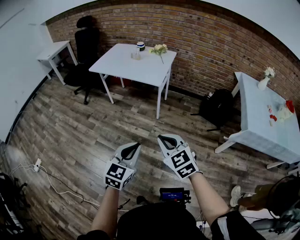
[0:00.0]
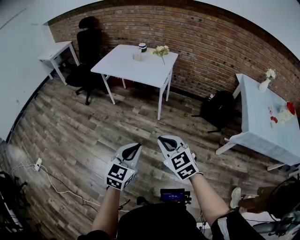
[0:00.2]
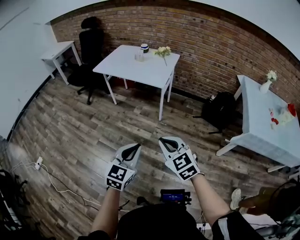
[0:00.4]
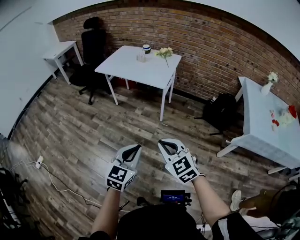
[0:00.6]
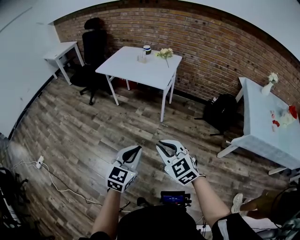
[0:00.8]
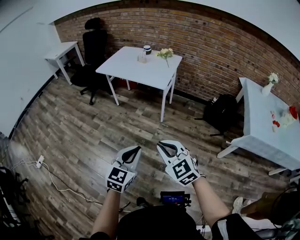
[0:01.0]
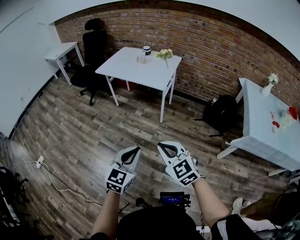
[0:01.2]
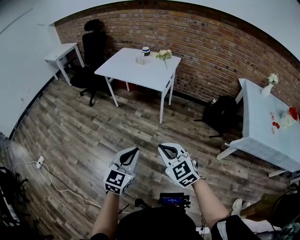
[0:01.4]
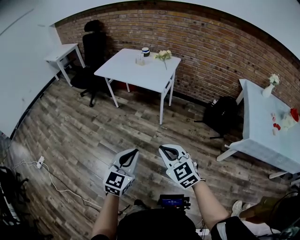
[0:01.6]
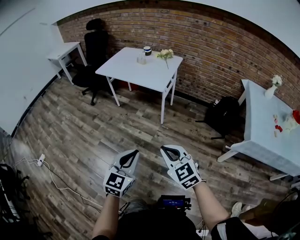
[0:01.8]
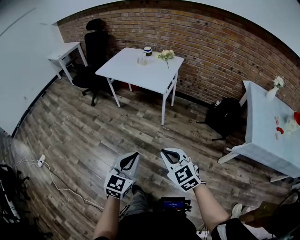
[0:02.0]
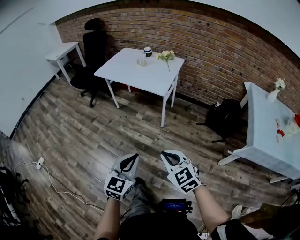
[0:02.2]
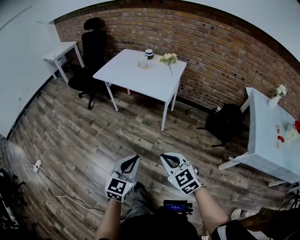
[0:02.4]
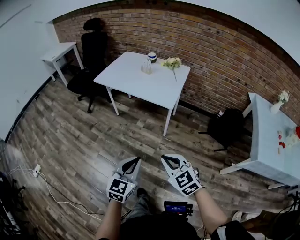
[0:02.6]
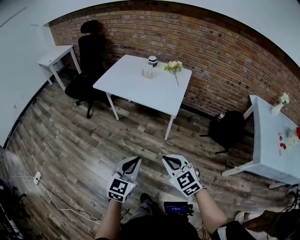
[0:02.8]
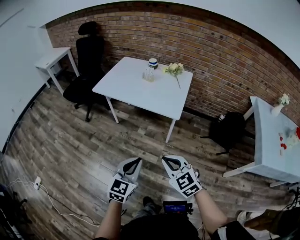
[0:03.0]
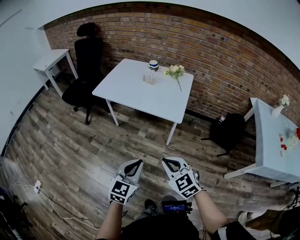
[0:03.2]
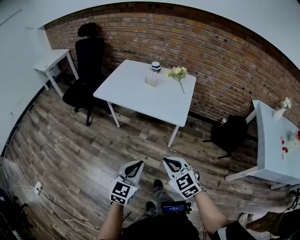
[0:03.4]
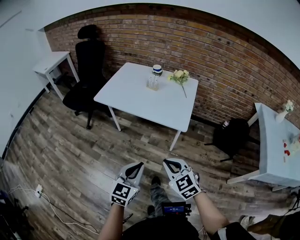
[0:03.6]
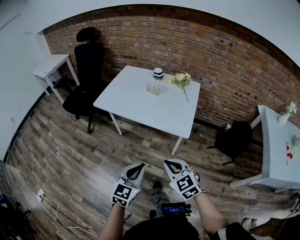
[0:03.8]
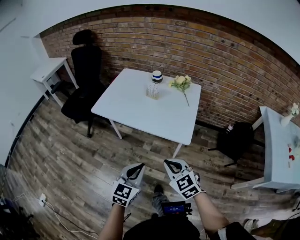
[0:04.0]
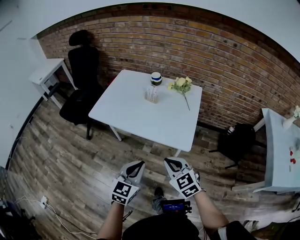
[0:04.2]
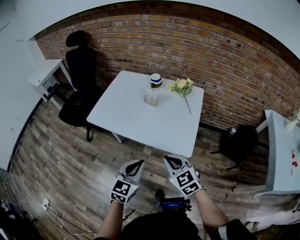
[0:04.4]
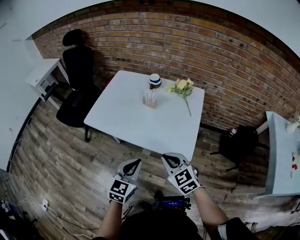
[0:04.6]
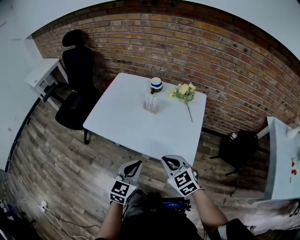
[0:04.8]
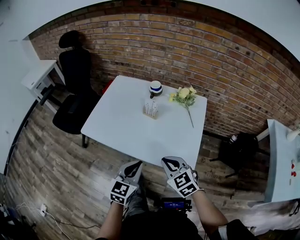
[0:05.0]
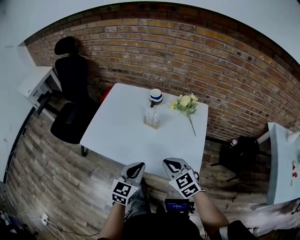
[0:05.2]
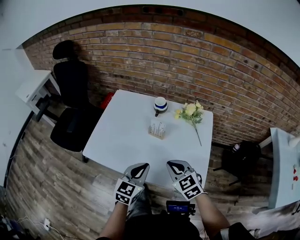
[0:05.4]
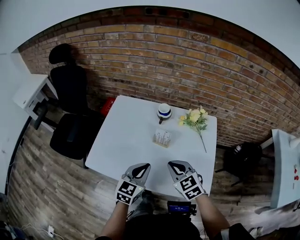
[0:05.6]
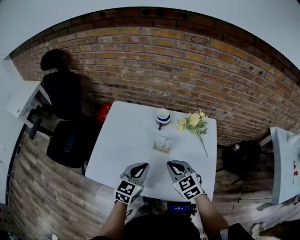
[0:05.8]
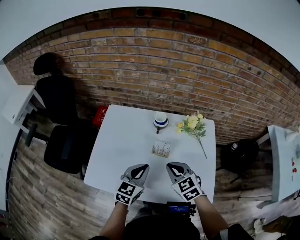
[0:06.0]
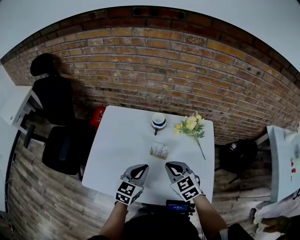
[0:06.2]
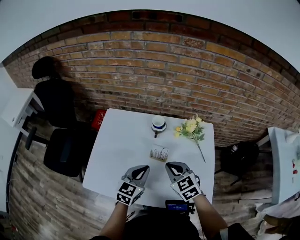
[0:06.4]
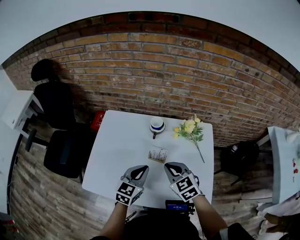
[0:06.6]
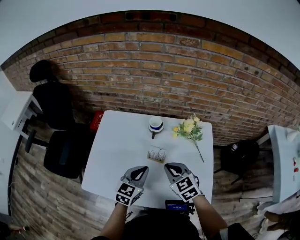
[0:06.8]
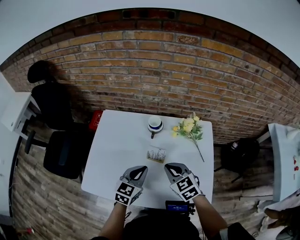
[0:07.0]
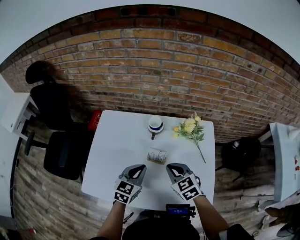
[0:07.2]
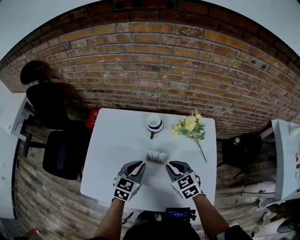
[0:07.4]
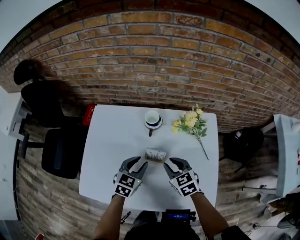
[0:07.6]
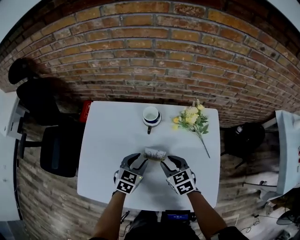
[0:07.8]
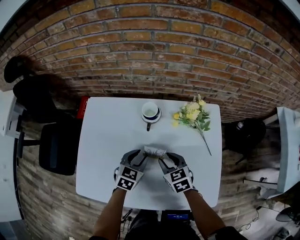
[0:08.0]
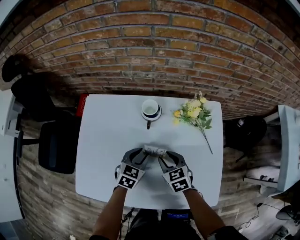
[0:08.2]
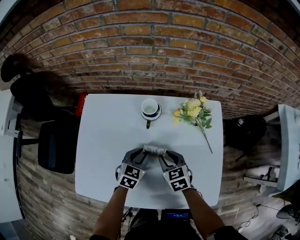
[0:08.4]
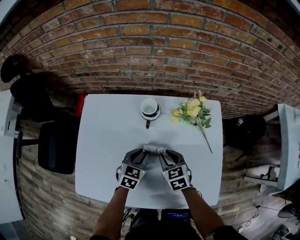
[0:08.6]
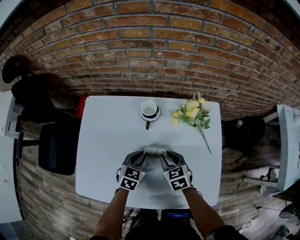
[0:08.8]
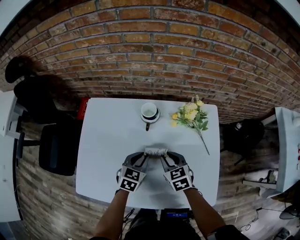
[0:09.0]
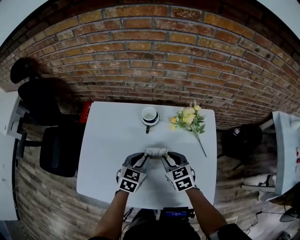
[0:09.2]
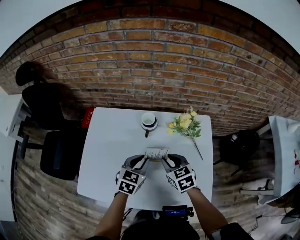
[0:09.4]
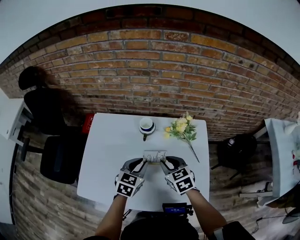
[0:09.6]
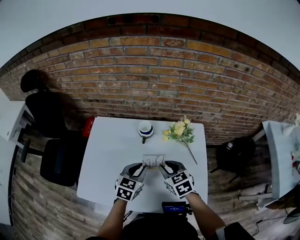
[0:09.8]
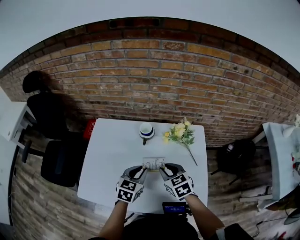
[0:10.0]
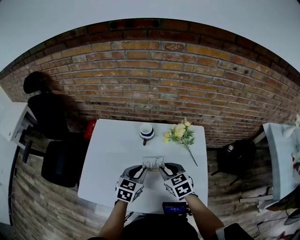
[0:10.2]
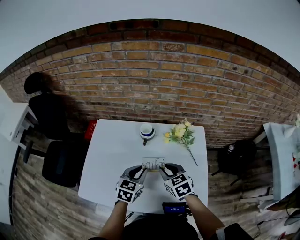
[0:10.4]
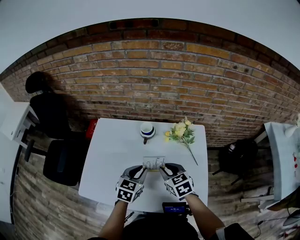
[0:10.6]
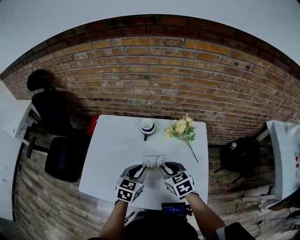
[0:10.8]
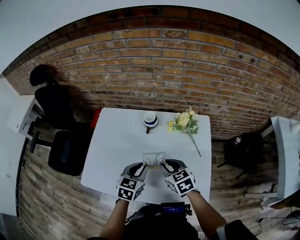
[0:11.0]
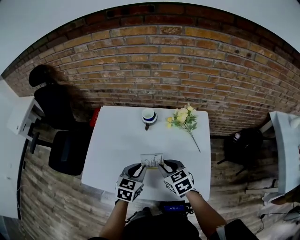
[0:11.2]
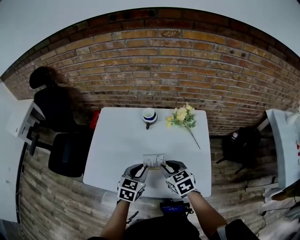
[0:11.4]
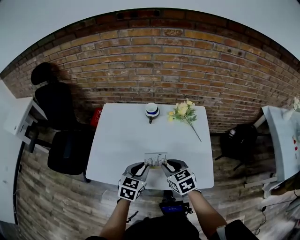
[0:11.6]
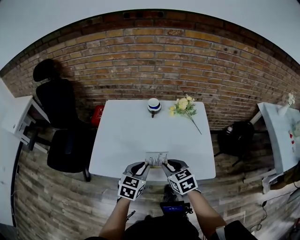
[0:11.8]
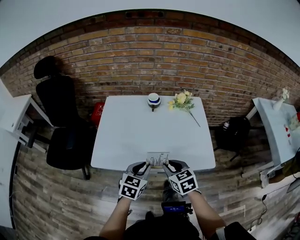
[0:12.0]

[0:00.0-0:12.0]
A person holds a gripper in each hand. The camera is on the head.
0:00.0 to 0:01.6: The grippers stay close to where they were, moving slightly.
0:01.6 to 0:03.0: The two grippers go roughly 30 cm forward and to the left.
0:03.0 to 0:04.4: The two grippers go some 30 cm forward.
0:04.4 to 0:06.0: The two grippers go approximately 35 cm forward.
0:06.0 to 0:07.6: The right gripper moves downward and forward, some 10 cm, and opens; the left gripper moves forward and downward, about 15 cm, and opens up.
0:09.0 to 0:10.4: The right gripper shifts roughly 10 cm upward. Meanwhile the left gripper shifts roughly 10 cm upward and backward.
0:10.4 to 0:12.0: Both grippers travel together backward, some 25 cm.

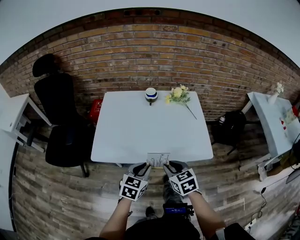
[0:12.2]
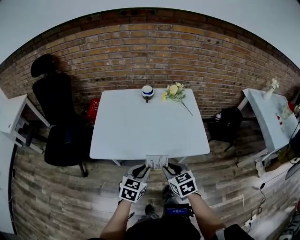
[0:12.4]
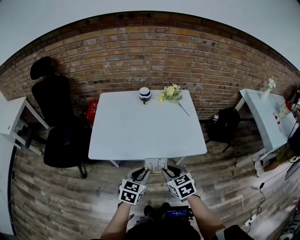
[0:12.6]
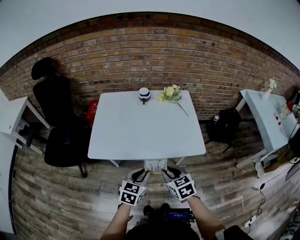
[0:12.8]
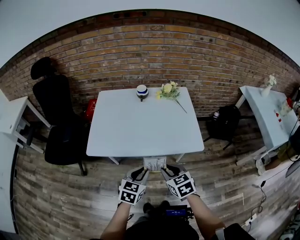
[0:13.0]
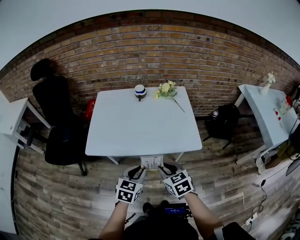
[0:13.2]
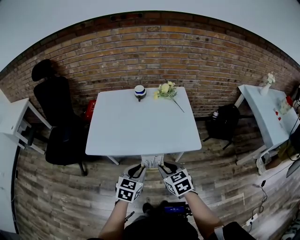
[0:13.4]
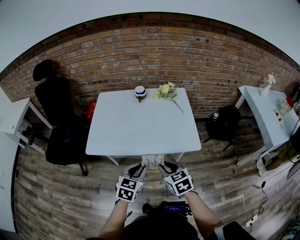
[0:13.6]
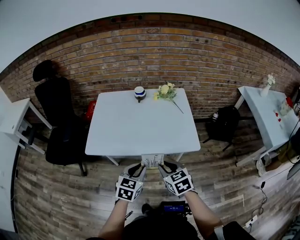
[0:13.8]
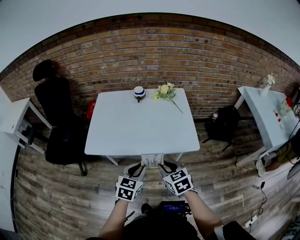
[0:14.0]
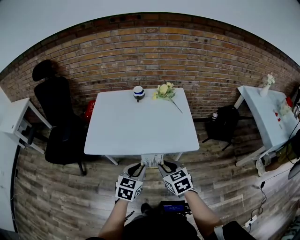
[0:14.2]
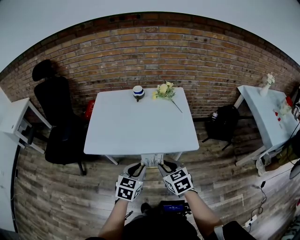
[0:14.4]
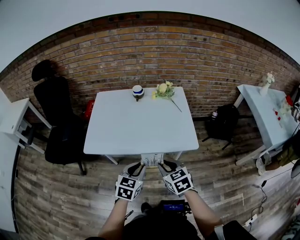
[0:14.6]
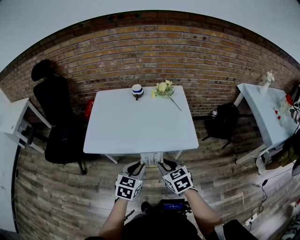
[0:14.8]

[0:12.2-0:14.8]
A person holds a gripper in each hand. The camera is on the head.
0:12.2 to 0:13.4: Both grippers travel together backward and to the right, some 10 cm.
0:13.4 to 0:14.8: The grippers move only a little.

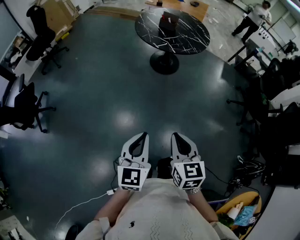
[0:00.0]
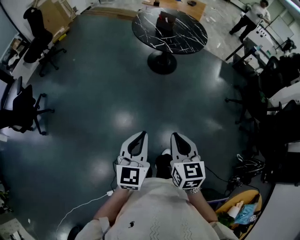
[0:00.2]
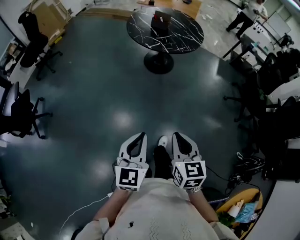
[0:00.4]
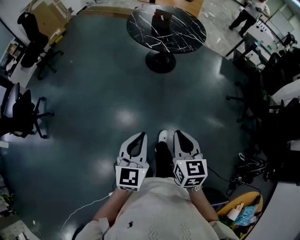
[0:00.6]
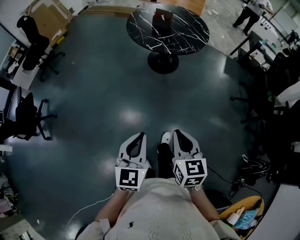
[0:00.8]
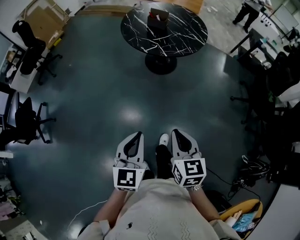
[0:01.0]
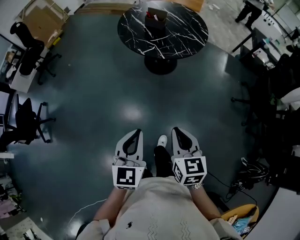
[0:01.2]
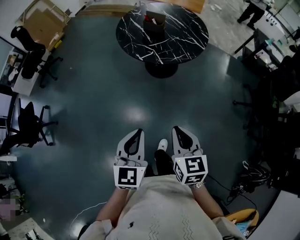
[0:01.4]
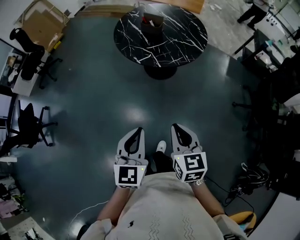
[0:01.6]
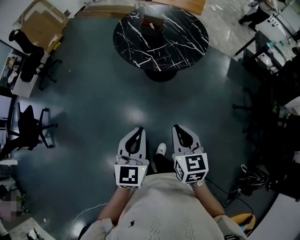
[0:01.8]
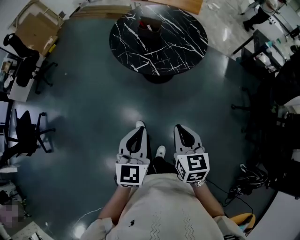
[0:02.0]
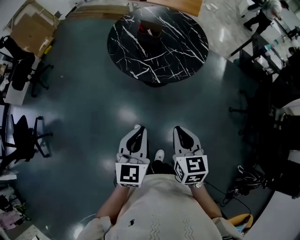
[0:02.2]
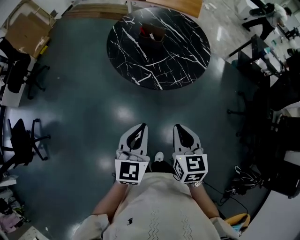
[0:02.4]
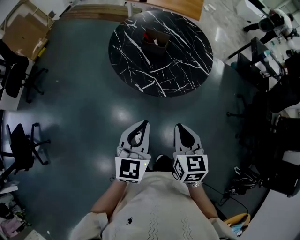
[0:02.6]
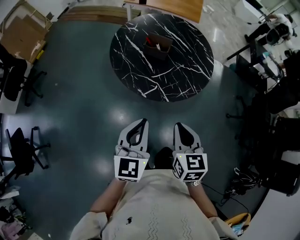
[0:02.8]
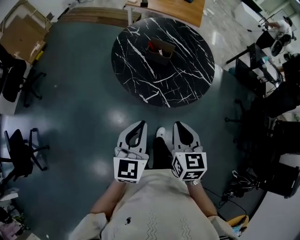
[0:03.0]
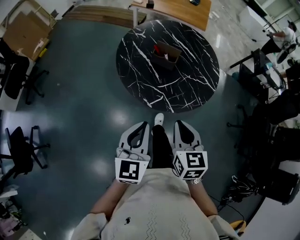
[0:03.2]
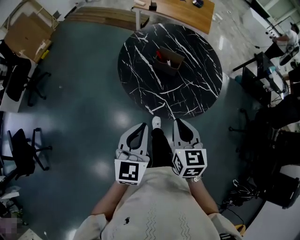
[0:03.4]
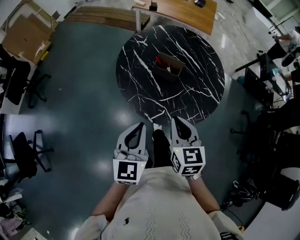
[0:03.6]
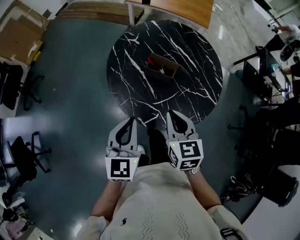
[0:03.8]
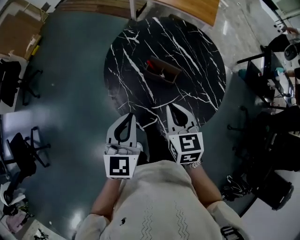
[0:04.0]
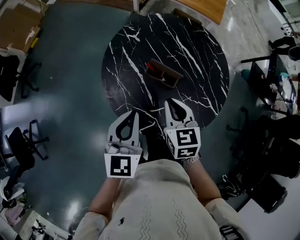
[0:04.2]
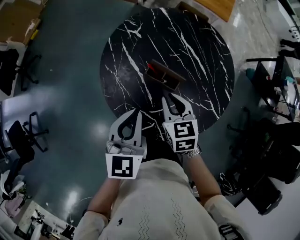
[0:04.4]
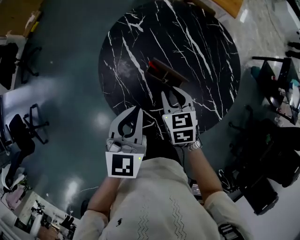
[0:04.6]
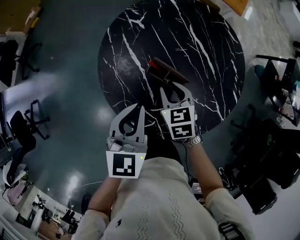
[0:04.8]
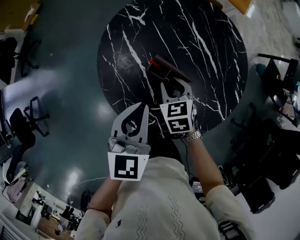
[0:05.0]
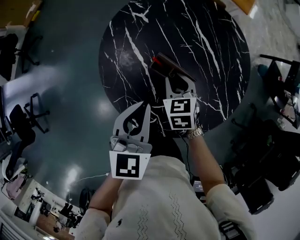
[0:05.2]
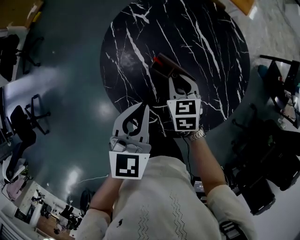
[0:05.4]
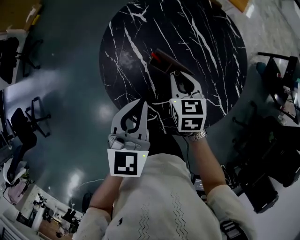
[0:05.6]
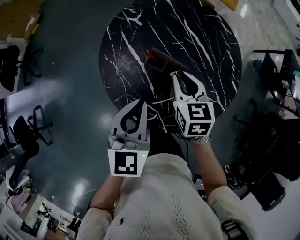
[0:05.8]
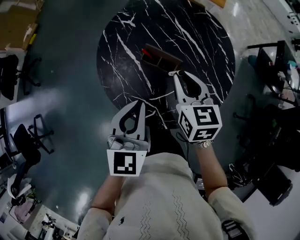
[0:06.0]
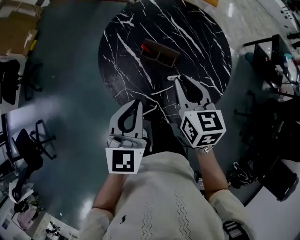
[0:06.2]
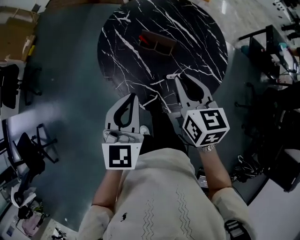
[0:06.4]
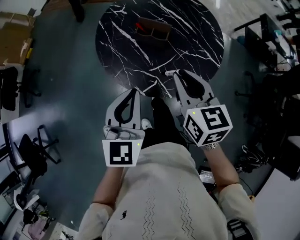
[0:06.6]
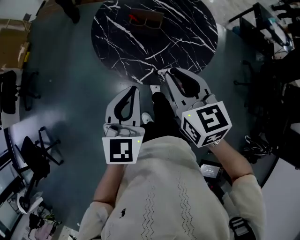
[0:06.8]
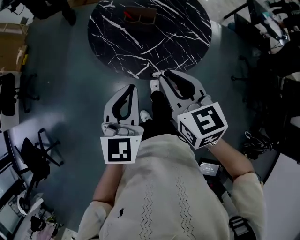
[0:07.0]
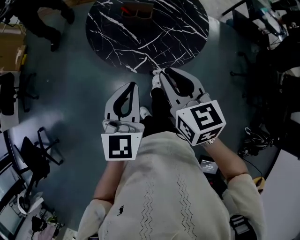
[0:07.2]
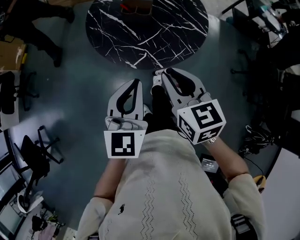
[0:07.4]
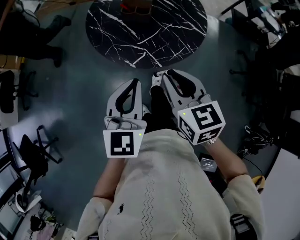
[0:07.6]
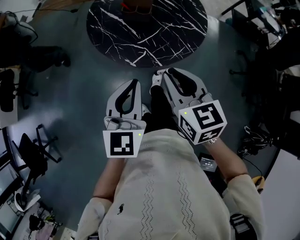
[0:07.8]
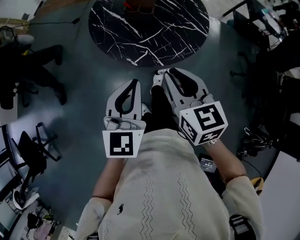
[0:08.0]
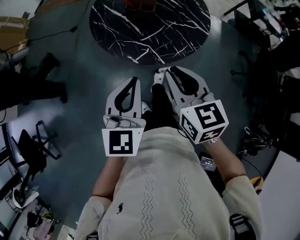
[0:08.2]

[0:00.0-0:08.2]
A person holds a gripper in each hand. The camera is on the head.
0:00.0 to 0:01.6: Both grippers move forward and to the right, some 35 cm.
0:01.6 to 0:03.2: The grippers both shift forward and to the left by roughly 35 cm.
0:03.2 to 0:05.0: The left gripper goes some 35 cm forward, while the right gripper is displaced forward and downward by approximately 50 cm, swivels about 30 degrees, and opens.
0:05.0 to 0:06.6: Both grippers move backward and upward, some 30 cm. The right gripper swivels some 30 degrees.
0:06.6 to 0:08.2: Both grippers move backward, about 15 cm.

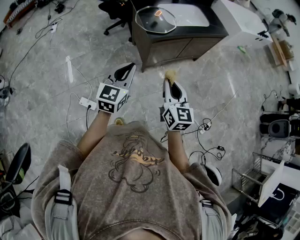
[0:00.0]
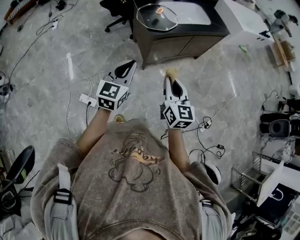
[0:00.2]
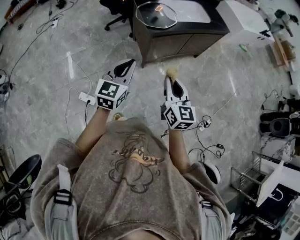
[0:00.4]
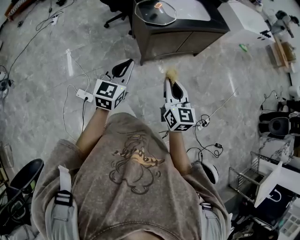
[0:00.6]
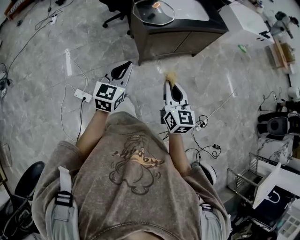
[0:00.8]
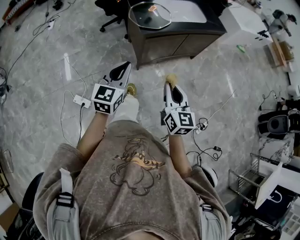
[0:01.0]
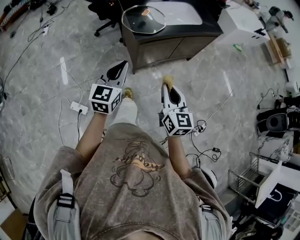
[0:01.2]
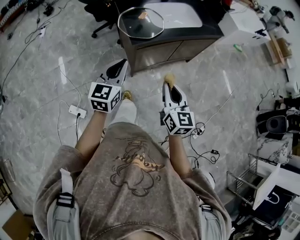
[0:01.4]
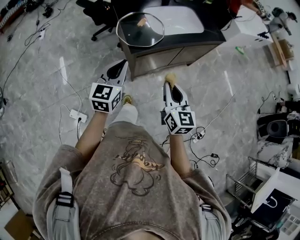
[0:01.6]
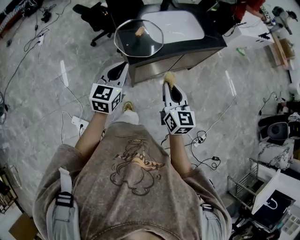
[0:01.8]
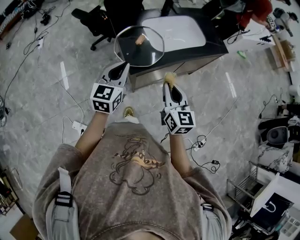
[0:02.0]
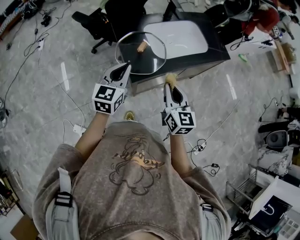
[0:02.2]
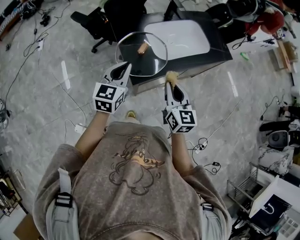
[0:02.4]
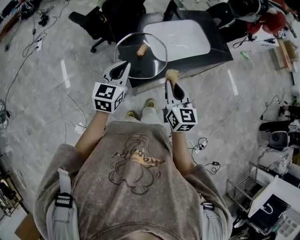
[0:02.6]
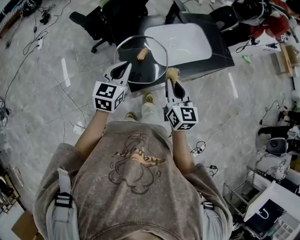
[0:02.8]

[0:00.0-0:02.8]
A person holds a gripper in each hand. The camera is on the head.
0:00.0 to 0:01.4: The right gripper shifts about 15 cm forward and to the right. The left gripper moves forward, some 15 cm.
0:01.4 to 0:02.8: The two grippers go about 30 cm forward.
